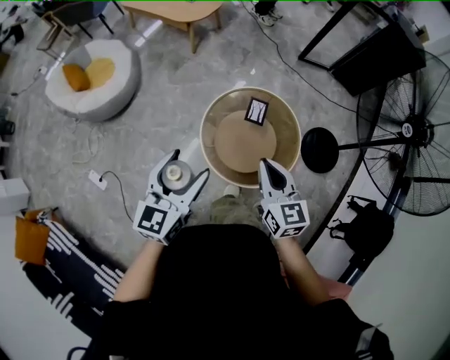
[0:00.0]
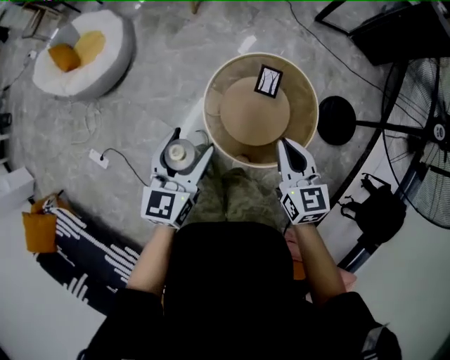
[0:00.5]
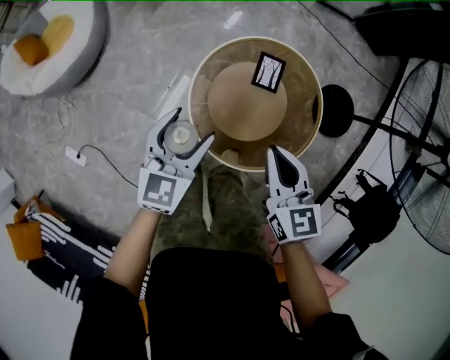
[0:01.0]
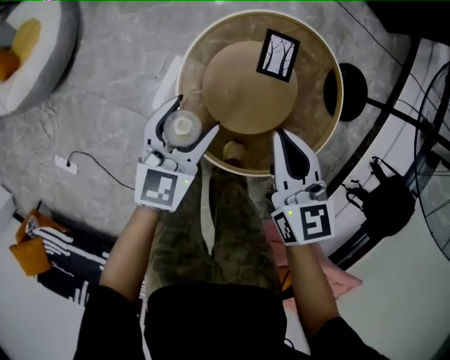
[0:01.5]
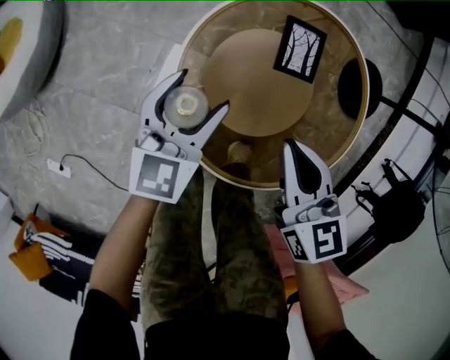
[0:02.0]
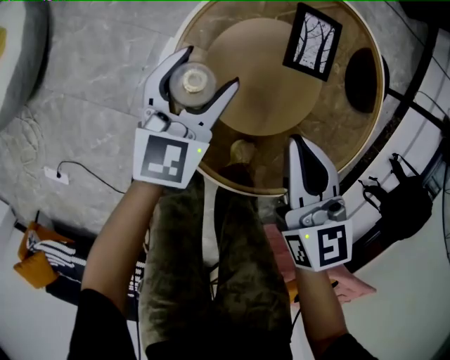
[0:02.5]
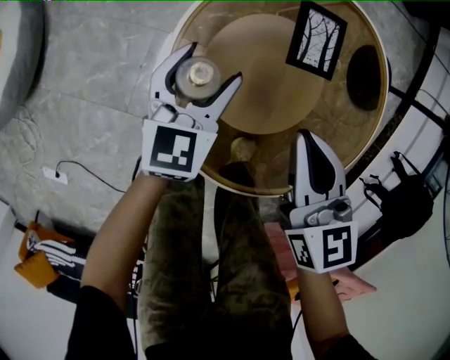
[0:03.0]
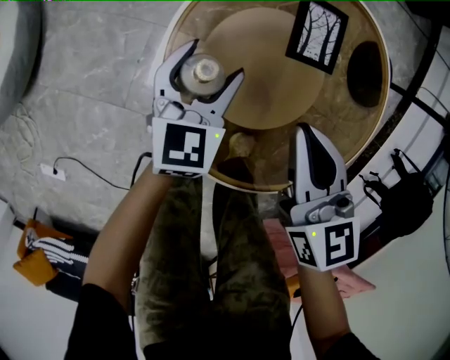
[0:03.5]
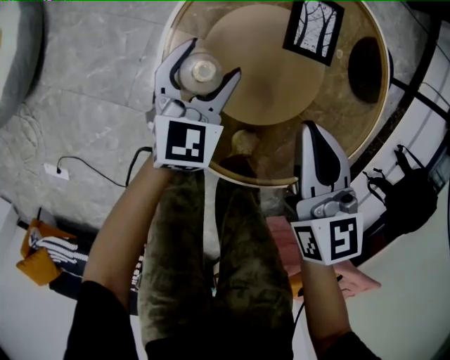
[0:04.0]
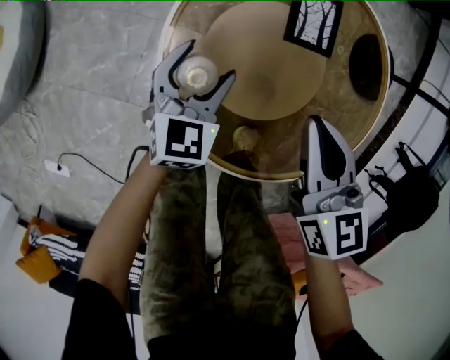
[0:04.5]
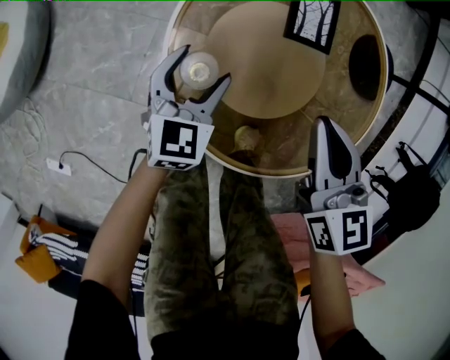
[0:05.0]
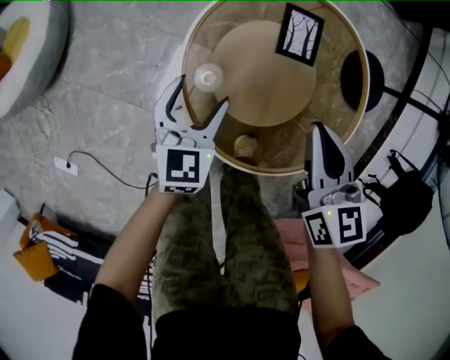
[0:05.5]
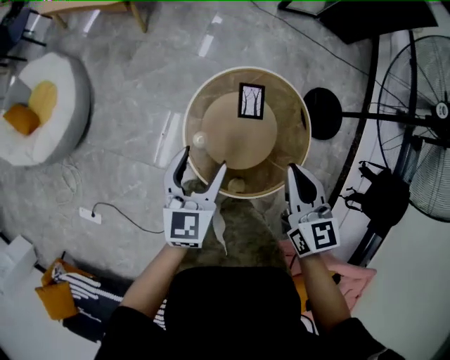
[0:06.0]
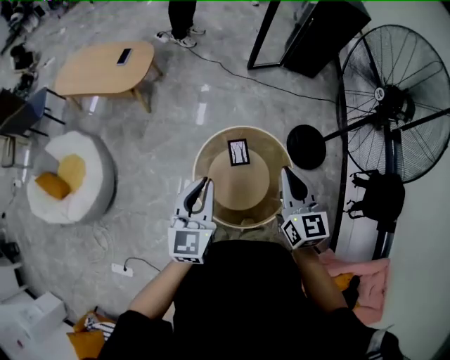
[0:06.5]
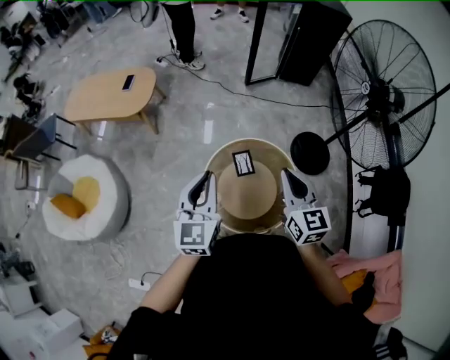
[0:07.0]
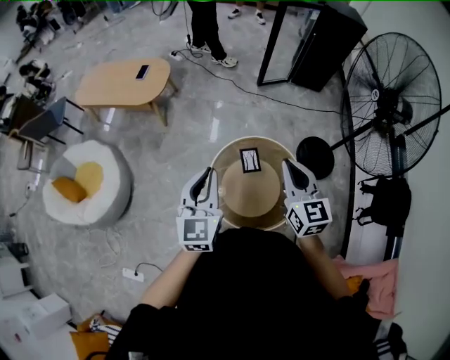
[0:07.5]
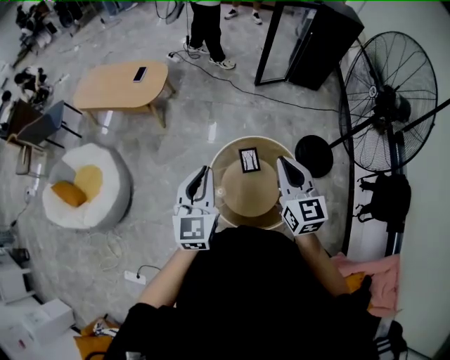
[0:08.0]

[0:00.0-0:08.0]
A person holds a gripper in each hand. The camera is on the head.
0:00.0 to 0:02.0: Both grippers travel together downward and forward, some 50 cm.
0:02.0 to 0:04.0: The right gripper heads downward, covering roughly 5 cm; the left gripper travels downward by about 10 cm.
0:04.0 to 0:06.0: Both grippers travel together upward, some 35 cm.
0:06.0 to 0:08.0: The two grippers go about 30 cm upward. The right gripper swivels roughly 20 degrees. Meanwhile the left gripper swivels about 20 degrees, and closes.

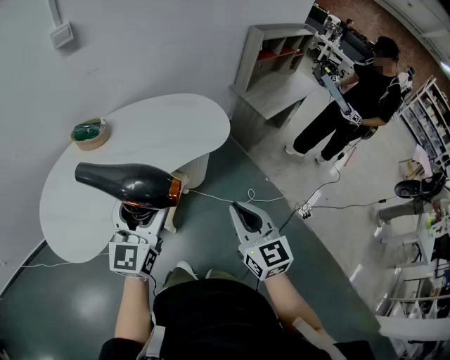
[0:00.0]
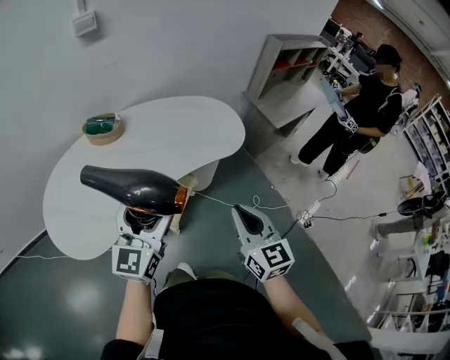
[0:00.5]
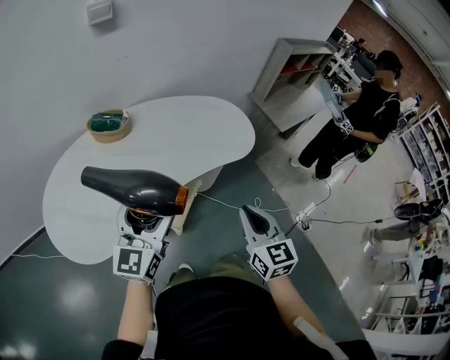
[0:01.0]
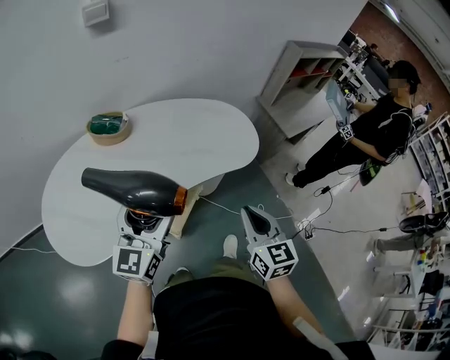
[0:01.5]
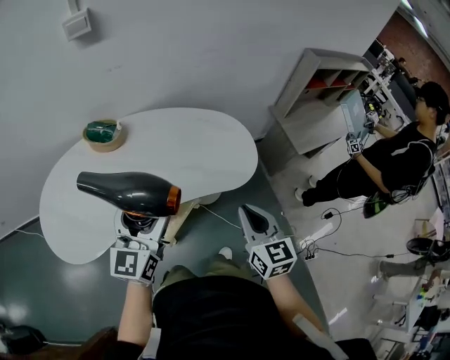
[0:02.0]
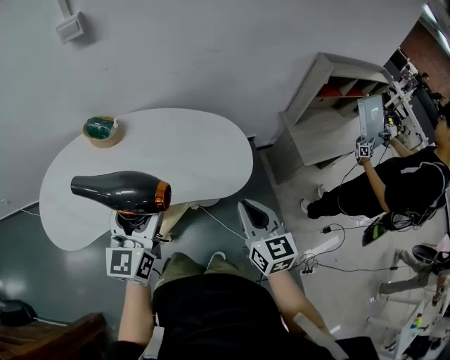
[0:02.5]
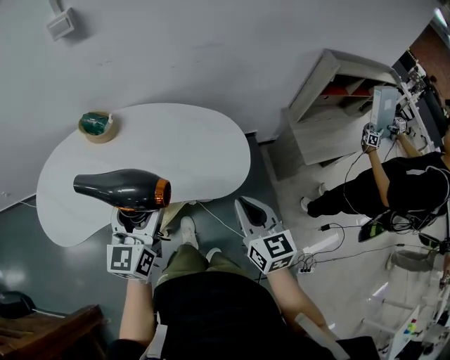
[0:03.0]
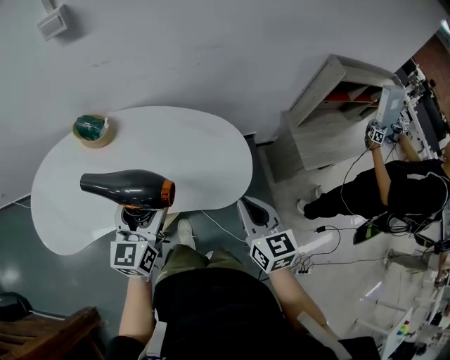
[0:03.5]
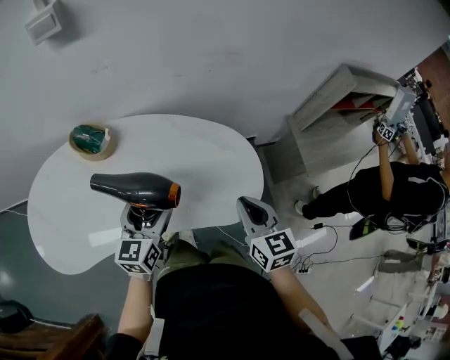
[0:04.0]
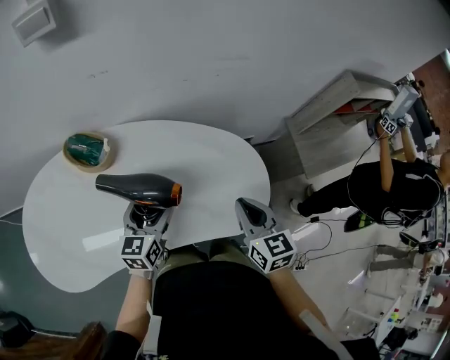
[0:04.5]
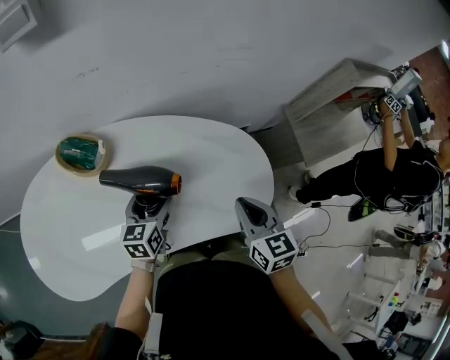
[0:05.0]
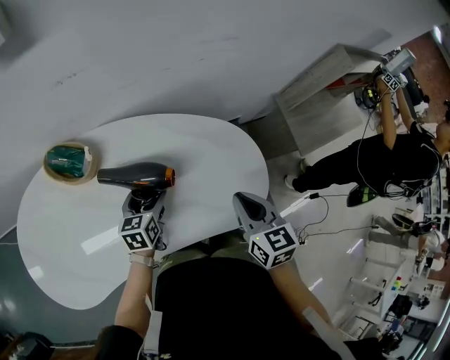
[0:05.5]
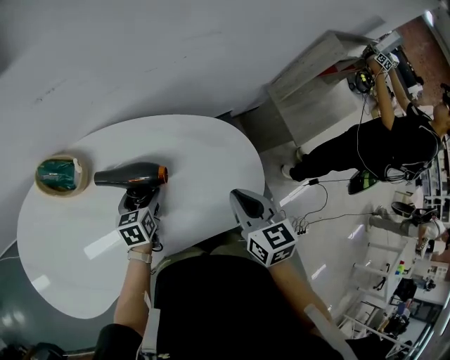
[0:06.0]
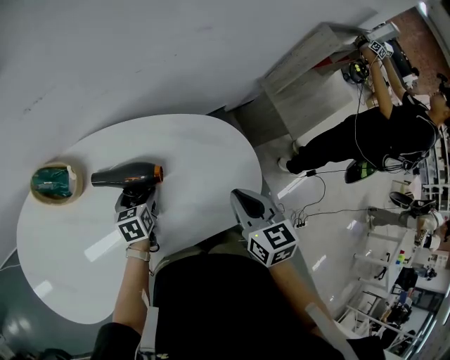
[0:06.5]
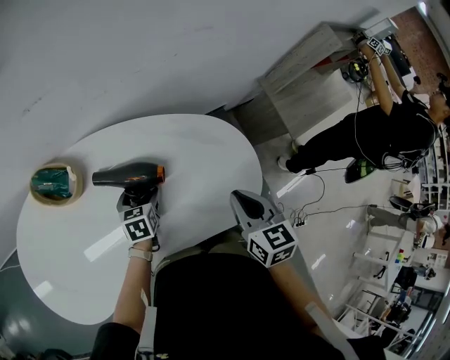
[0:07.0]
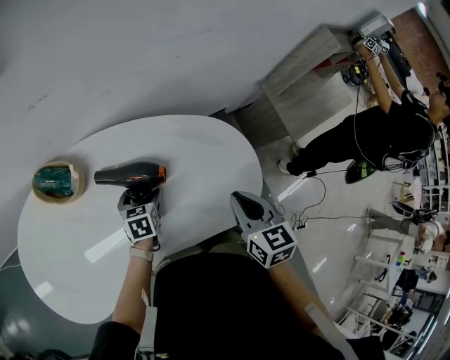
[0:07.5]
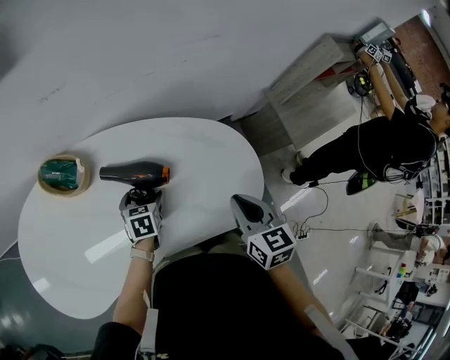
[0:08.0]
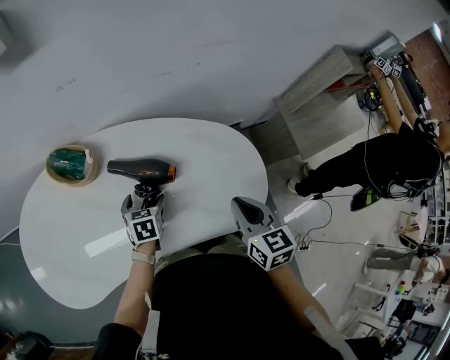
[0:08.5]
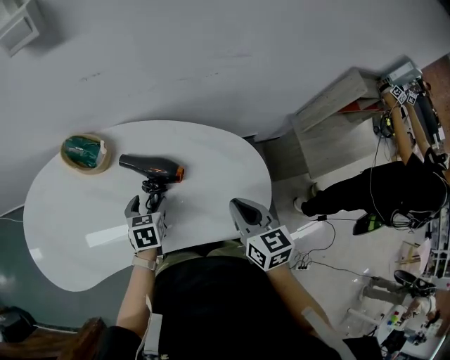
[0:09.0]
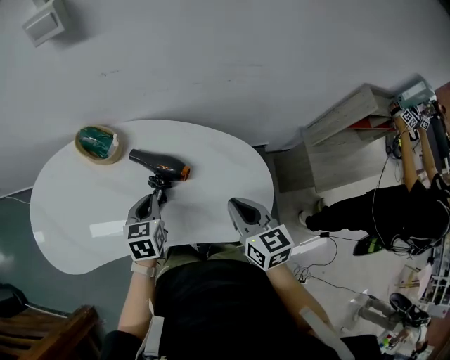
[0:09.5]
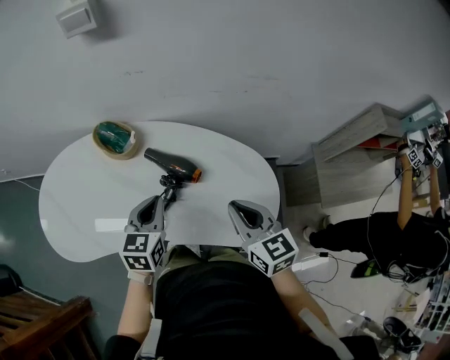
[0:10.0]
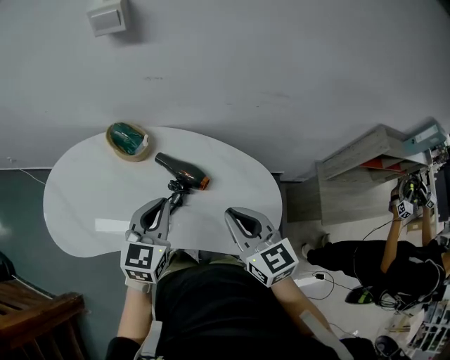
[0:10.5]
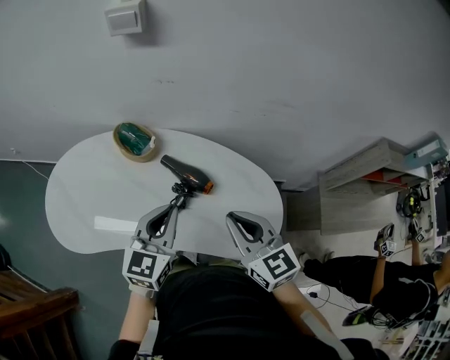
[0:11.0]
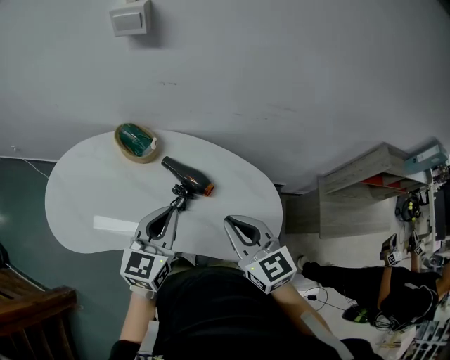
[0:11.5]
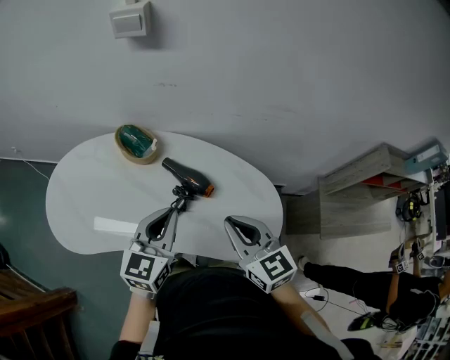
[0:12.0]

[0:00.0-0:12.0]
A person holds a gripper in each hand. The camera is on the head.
0:00.0 to 0:02.0: The two grippers go roughly 20 cm forward.
0:02.0 to 0:04.0: The left gripper travels forward and downward by roughly 20 cm, while the right gripper is displaced forward by about 20 cm.
0:04.0 to 0:06.0: The right gripper shifts roughly 10 cm forward and downward, while the left gripper is displaced downward and forward by roughly 25 cm, and changes its angle by about 30 degrees.
0:06.0 to 0:08.0: The grippers move only a little.
0:08.0 to 0:10.0: The right gripper travels upward by about 10 cm, and swivels roughly 30 degrees. Meanwhile the left gripper goes some 25 cm upward, turns by about 30 degrees, and closes up.
0:10.0 to 0:12.0: The left gripper goes some 10 cm upward. Meanwhile the right gripper heads upward and to the left, covering approximately 5 cm.

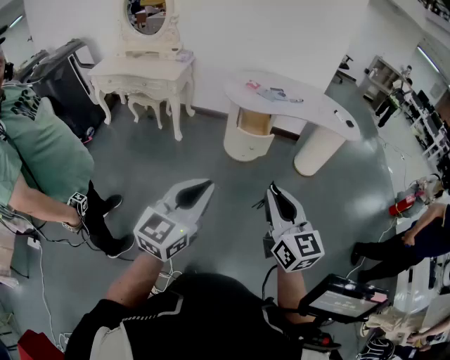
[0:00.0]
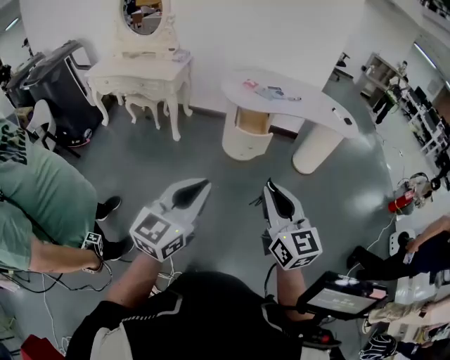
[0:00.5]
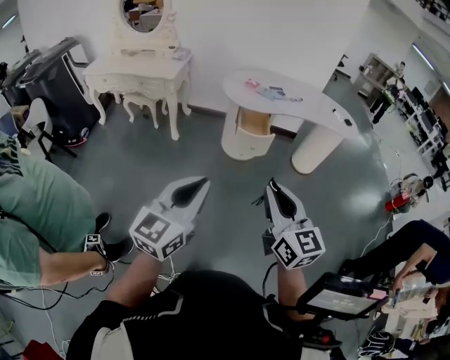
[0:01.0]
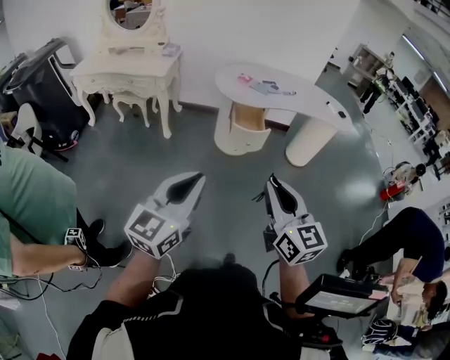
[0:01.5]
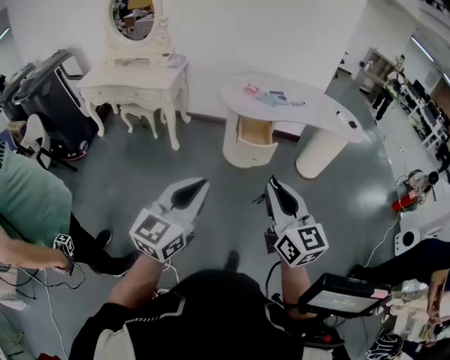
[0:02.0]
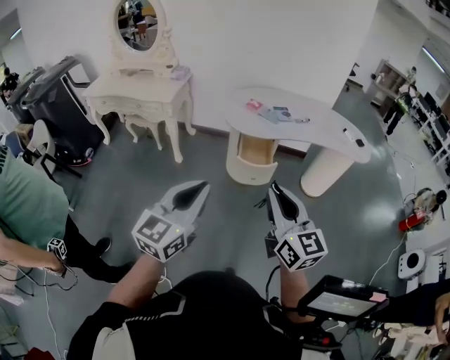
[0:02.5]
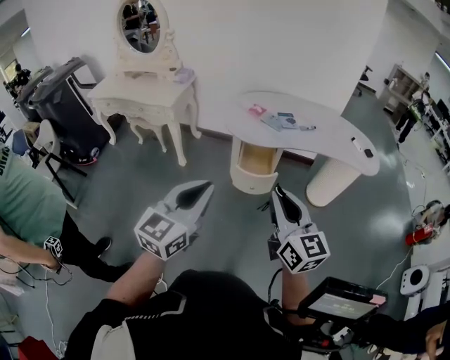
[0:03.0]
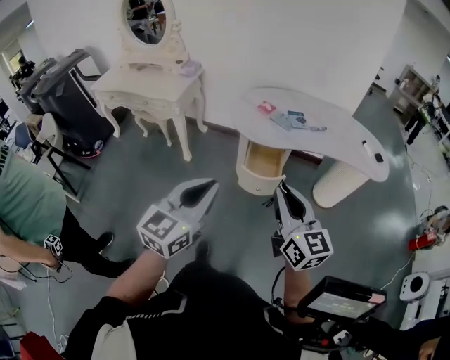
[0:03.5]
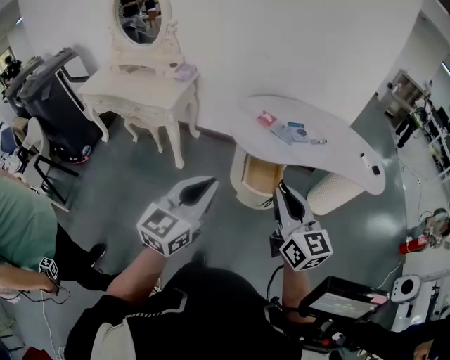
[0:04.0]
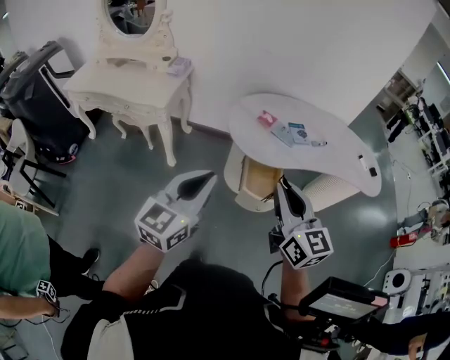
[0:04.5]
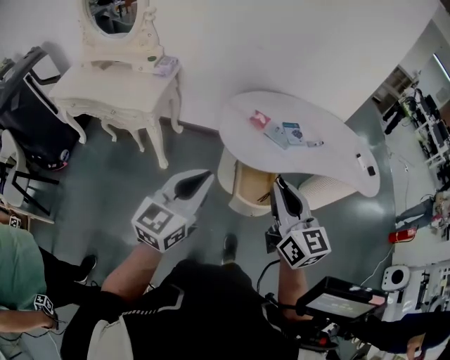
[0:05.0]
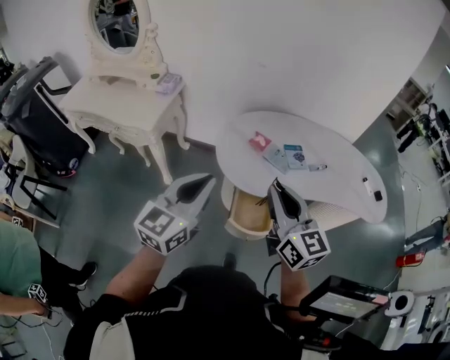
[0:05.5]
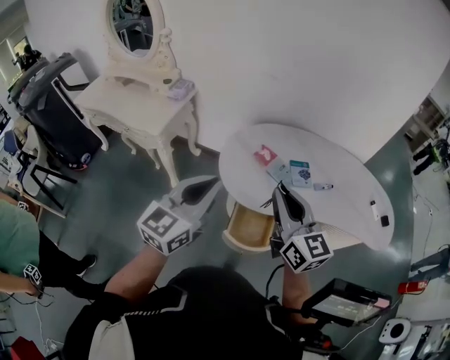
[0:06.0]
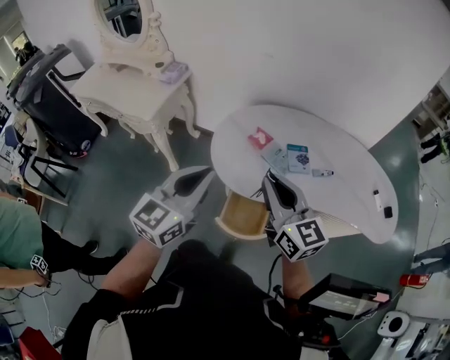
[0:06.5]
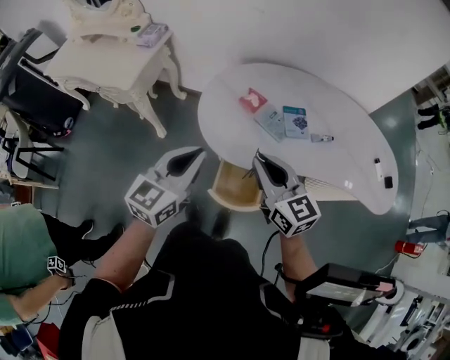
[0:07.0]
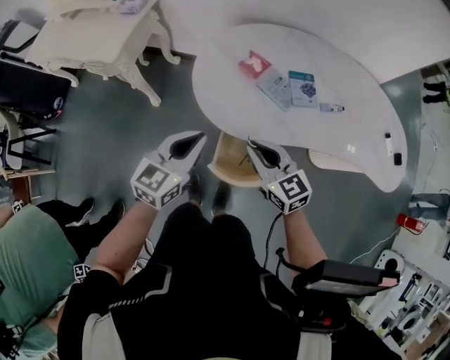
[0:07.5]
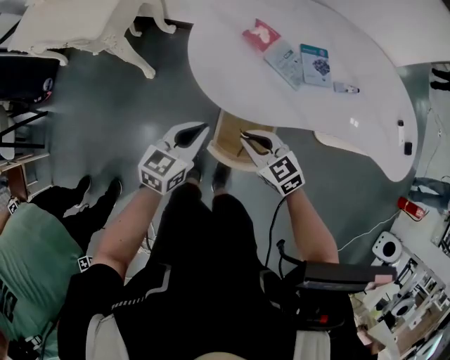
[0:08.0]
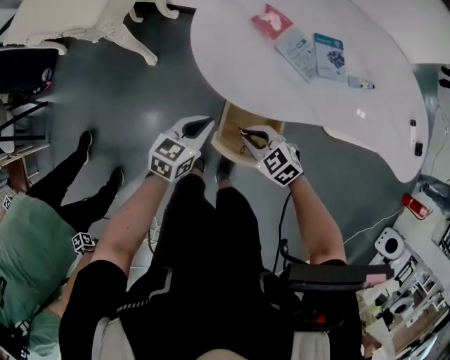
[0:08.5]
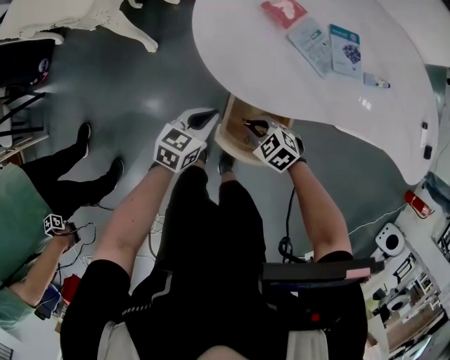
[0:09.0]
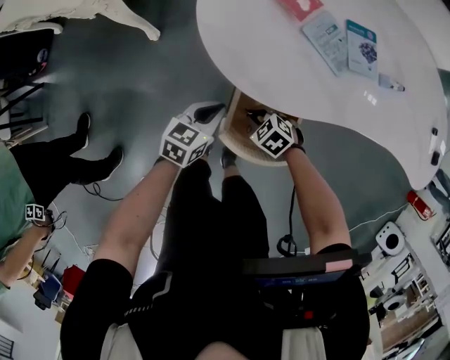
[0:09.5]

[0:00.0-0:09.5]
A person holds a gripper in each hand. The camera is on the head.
0:00.0 to 0:02.0: The right gripper shifts some 10 cm forward. The left gripper shifts approximately 10 cm forward and to the left.
0:02.0 to 0:04.0: The two grippers go approximately 30 cm forward.
0:04.0 to 0:05.5: The grippers both shift forward by some 20 cm.
0:05.5 to 0:07.5: The left gripper goes approximately 25 cm downward, forward and to the right. The right gripper shifts approximately 25 cm downward and forward, and swivels approximately 30 degrees.
0:07.5 to 0:09.5: The grippers both shift downward by approximately 30 cm. The left gripper rotates about 20 degrees. Meanwhile the right gripper tips its fingers downward by roughly 40 degrees.
